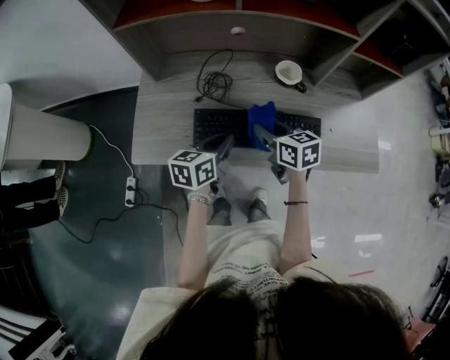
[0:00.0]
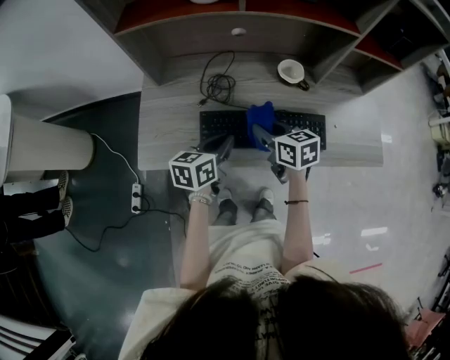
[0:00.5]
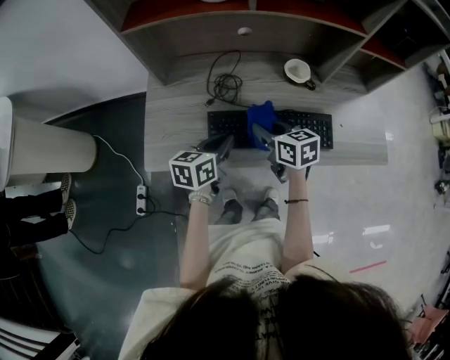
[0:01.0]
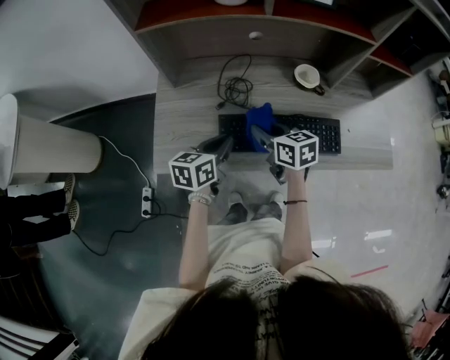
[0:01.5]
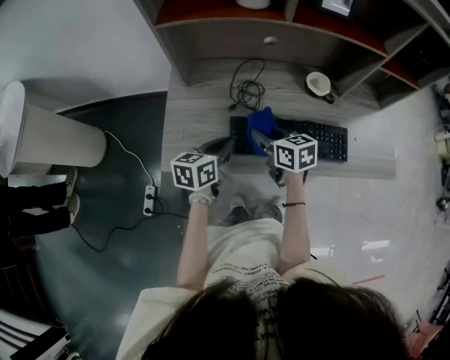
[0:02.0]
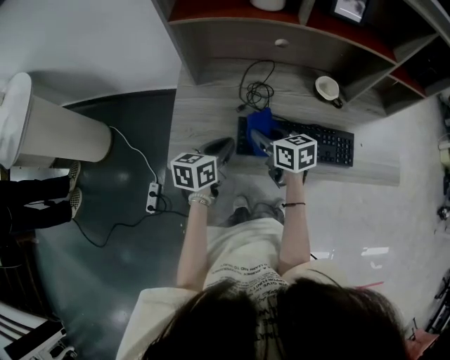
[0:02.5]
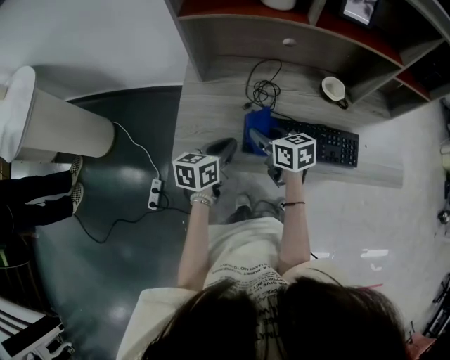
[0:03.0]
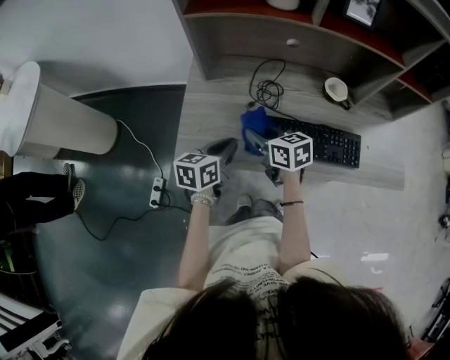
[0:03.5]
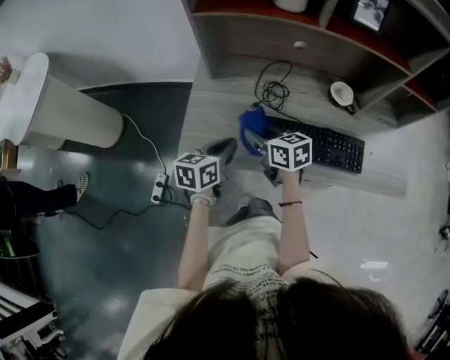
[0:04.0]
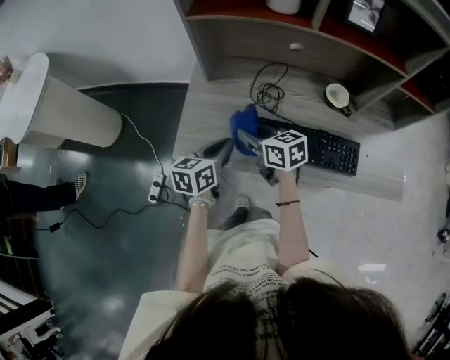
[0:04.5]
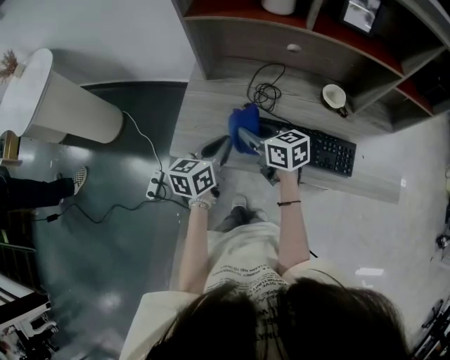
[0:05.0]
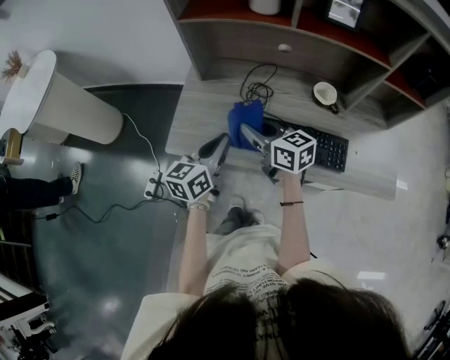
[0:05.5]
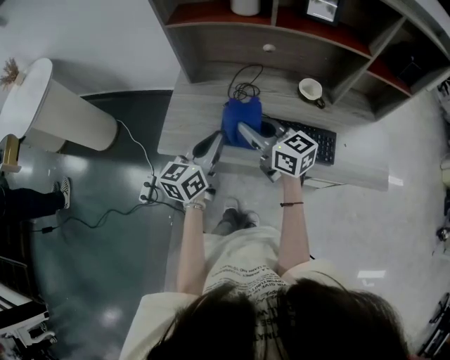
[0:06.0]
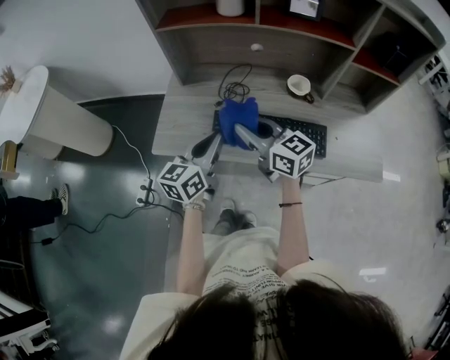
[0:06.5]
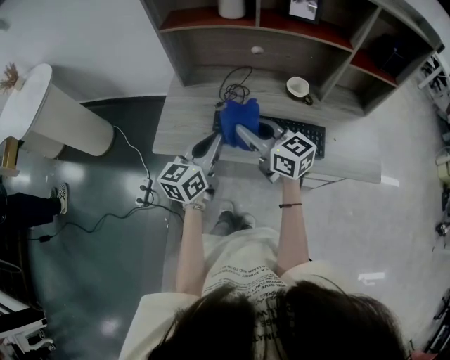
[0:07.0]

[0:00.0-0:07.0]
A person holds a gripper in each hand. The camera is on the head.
0:00.0 to 0:02.0: The grippers both shift to the left by approximately 10 cm.
0:02.0 to 0:03.5: The right gripper goes about 5 cm to the left.
0:03.5 to 0:05.0: The grippers stay close to where they were, moving slightly.
0:05.0 to 0:07.0: The grippers both shift upward, backward and to the right by about 15 cm. The right gripper turns by roughly 20 degrees.

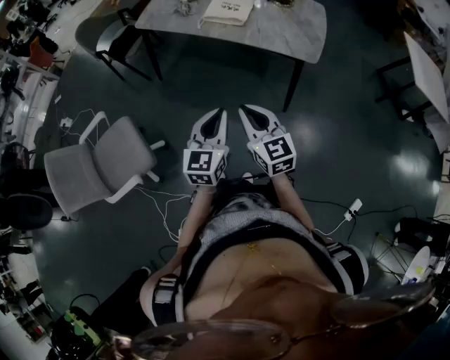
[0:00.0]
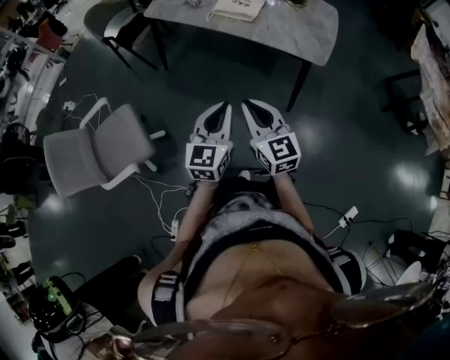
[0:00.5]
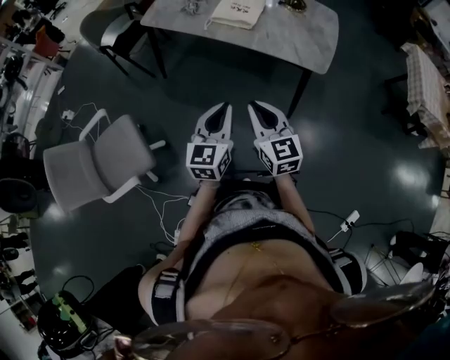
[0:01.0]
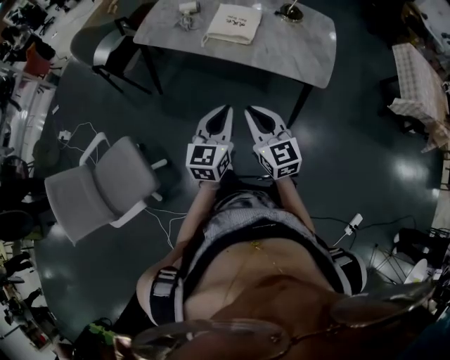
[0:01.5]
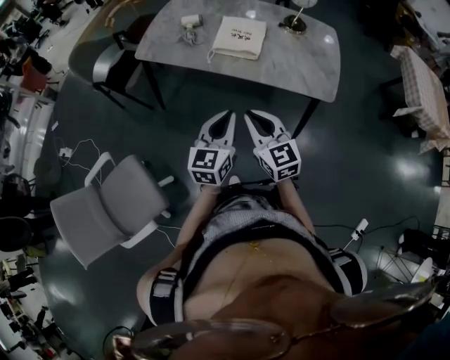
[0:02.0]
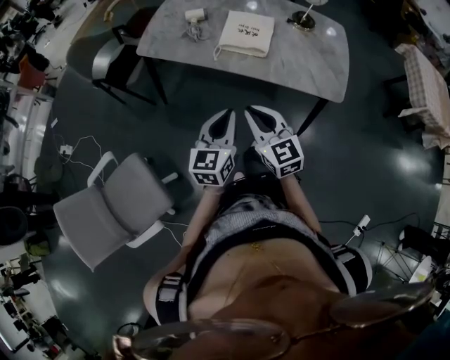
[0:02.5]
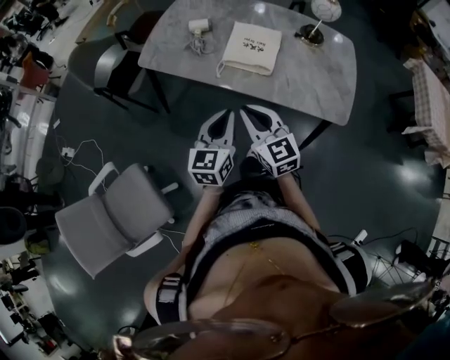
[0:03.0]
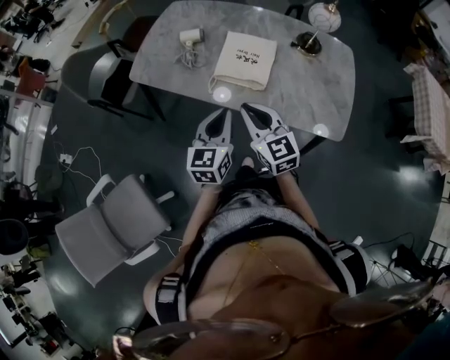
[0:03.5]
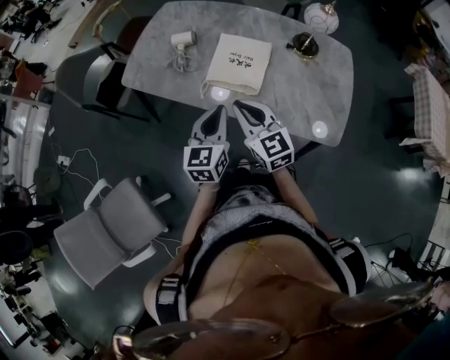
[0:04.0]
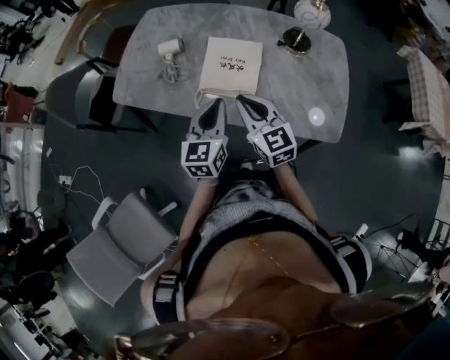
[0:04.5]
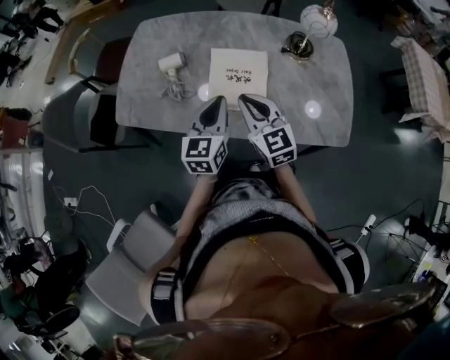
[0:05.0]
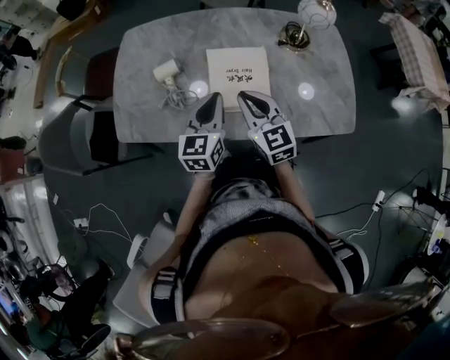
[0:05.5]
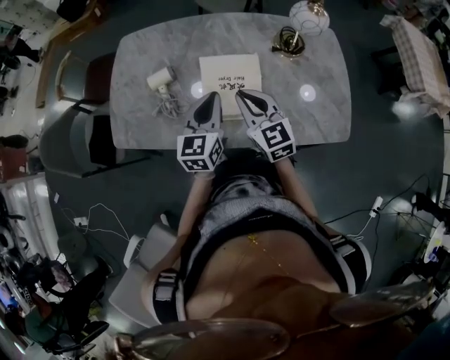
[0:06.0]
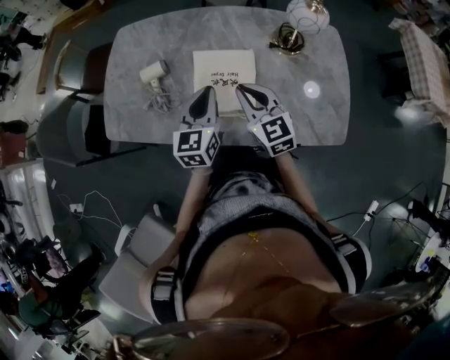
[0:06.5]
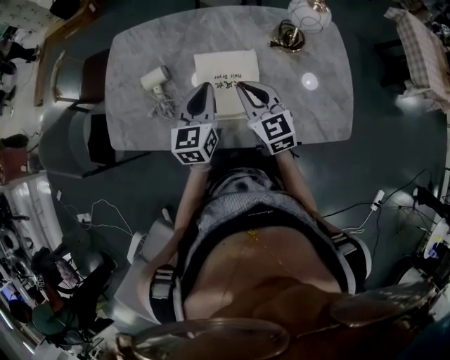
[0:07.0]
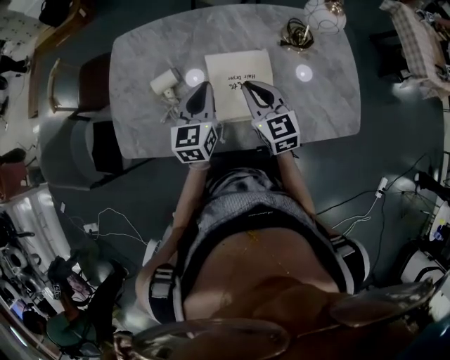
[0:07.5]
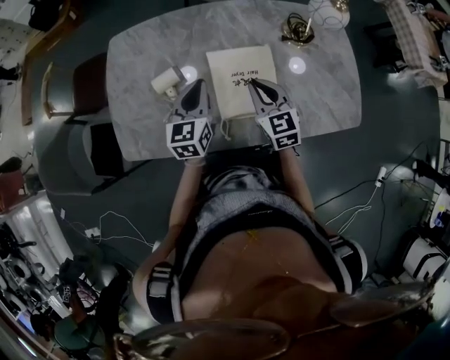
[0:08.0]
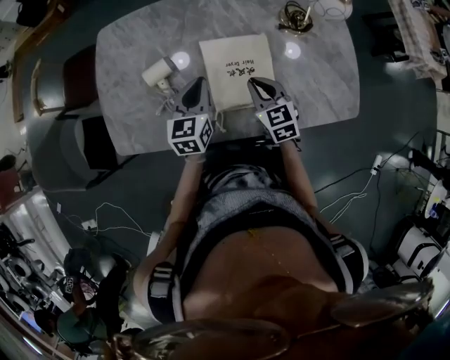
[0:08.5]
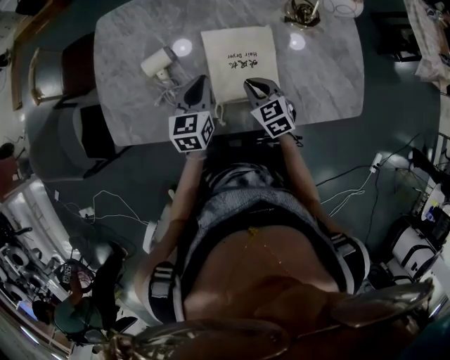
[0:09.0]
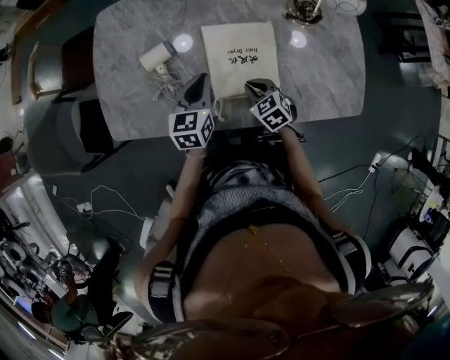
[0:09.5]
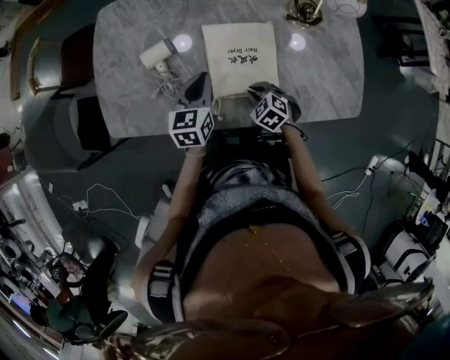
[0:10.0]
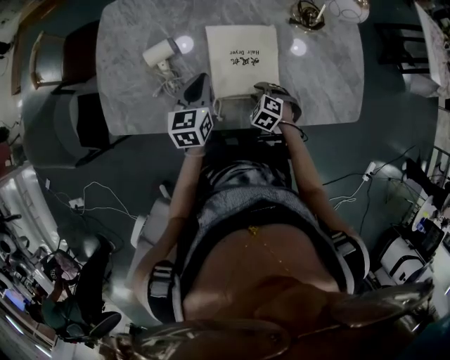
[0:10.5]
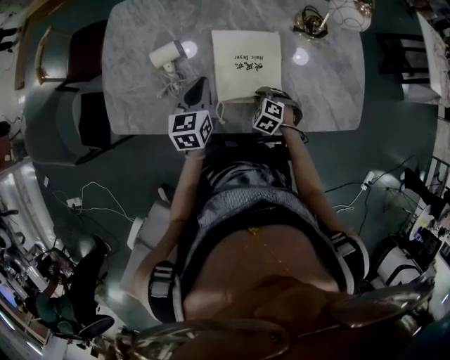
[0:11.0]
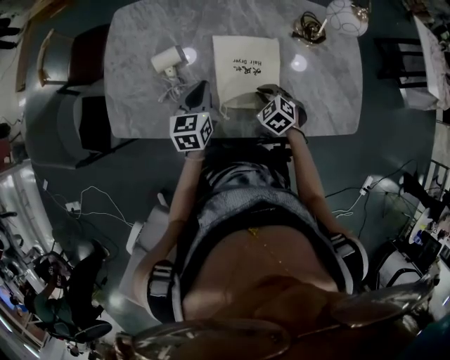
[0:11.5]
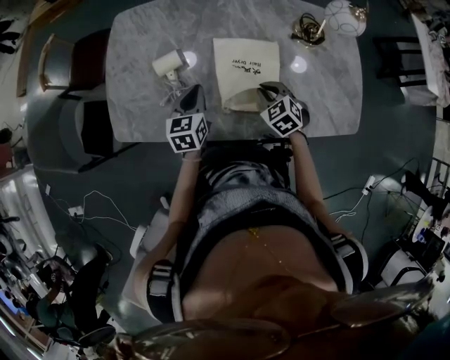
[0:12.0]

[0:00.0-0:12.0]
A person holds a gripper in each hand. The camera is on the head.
0:00.0 to 0:02.0: Both grippers move forward, roughly 20 cm.
0:02.0 to 0:04.0: The two grippers go some 25 cm forward.
0:04.0 to 0:06.0: Both grippers travel together forward, roughly 20 cm. The right gripper turns by some 20 degrees.
0:06.0 to 0:08.0: The left gripper travels to the left and forward by roughly 15 cm. Meanwhile the right gripper travels forward and downward by about 10 cm.
0:08.0 to 0:10.0: The right gripper shifts some 20 cm downward, and points its fingers some 40 degrees further downward; the left gripper heads downward, covering approximately 5 cm.
0:10.0 to 0:12.0: The right gripper shifts about 10 cm upward and forward, and opens and closes again.

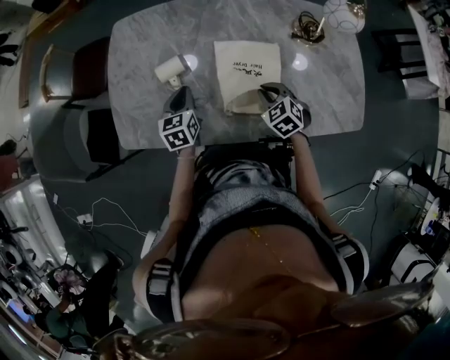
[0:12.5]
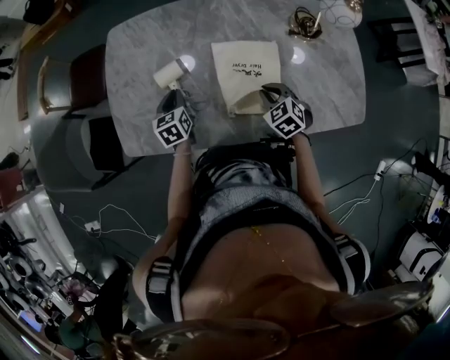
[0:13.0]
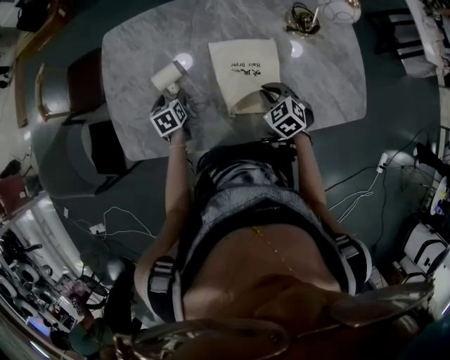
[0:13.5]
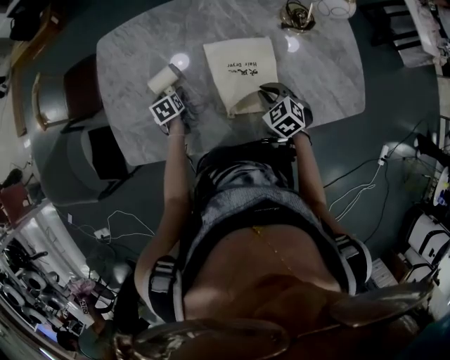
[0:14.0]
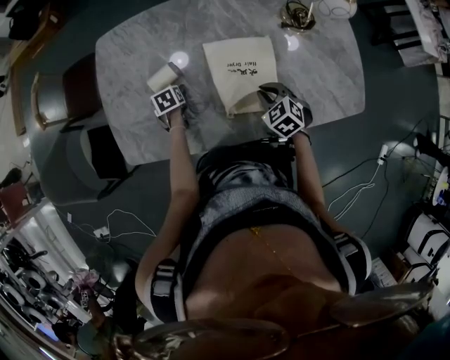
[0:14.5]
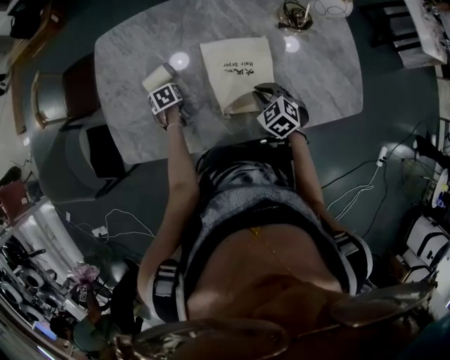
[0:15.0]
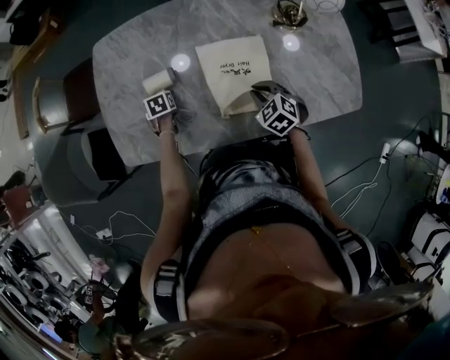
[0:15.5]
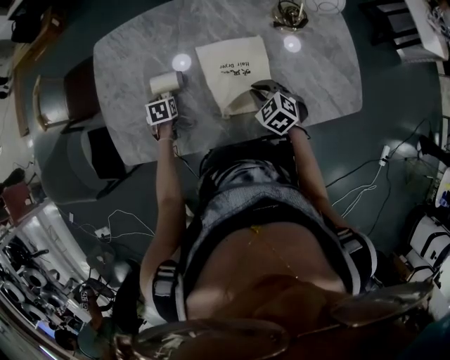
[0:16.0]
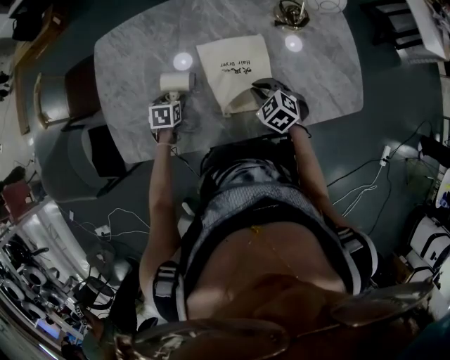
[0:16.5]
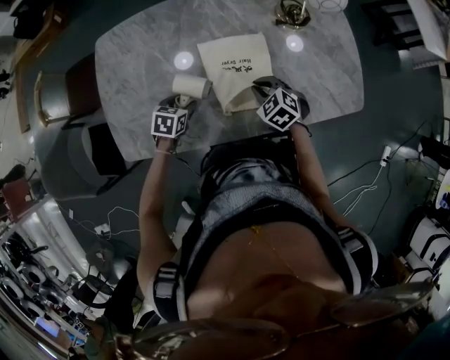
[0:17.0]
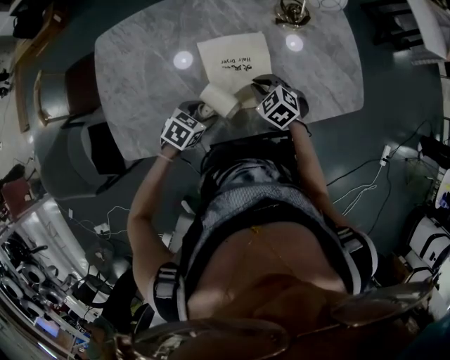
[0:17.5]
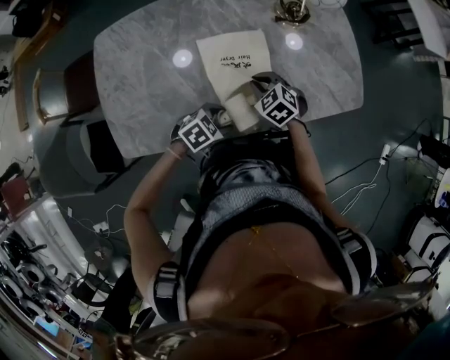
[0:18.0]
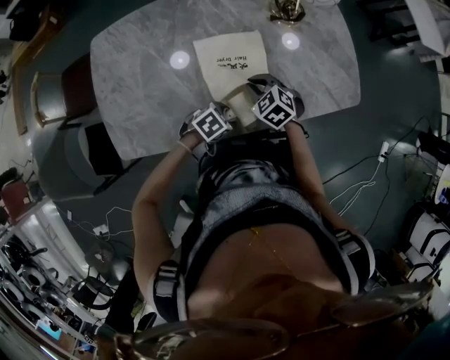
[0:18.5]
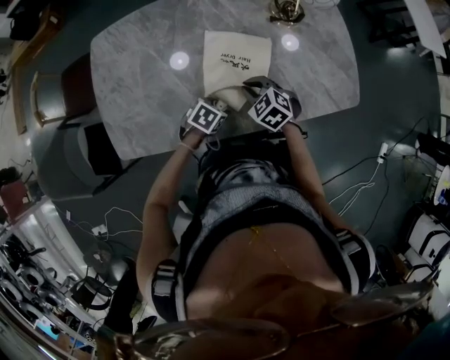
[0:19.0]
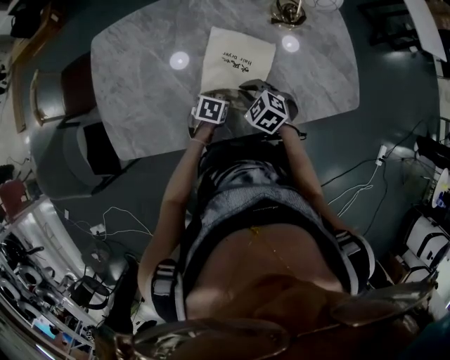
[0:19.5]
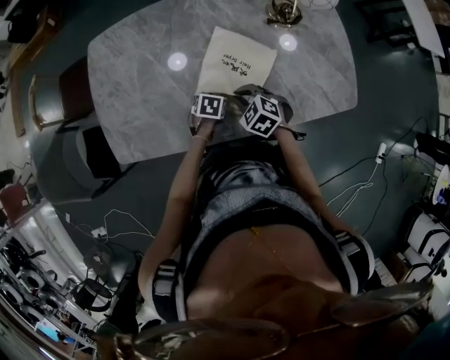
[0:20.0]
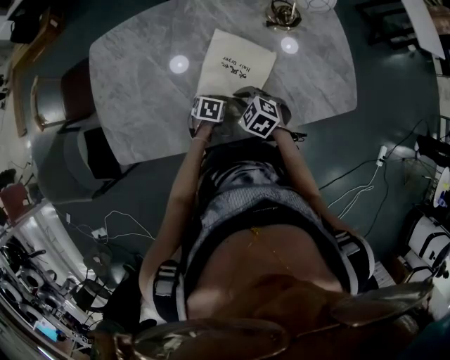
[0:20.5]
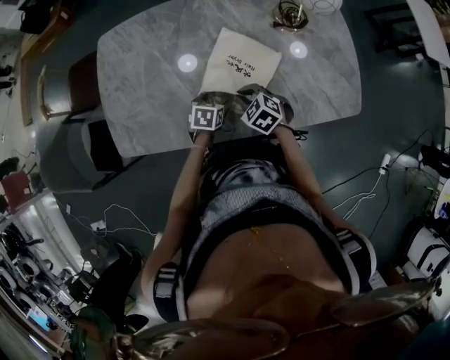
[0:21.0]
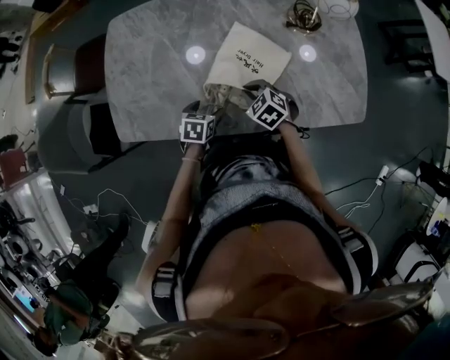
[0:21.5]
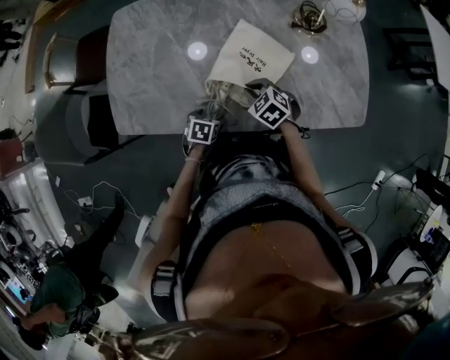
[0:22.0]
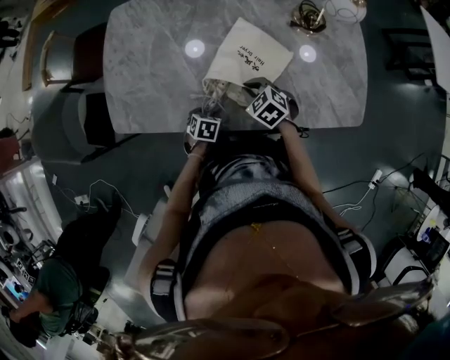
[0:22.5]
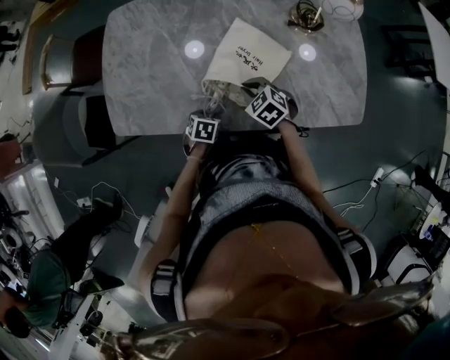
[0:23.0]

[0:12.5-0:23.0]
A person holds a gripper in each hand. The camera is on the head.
0:12.5 to 0:14.5: The left gripper shifts roughly 15 cm downward, tips its fingers downward by about 30 degrees, and opens its fingers.
0:14.5 to 0:16.5: The left gripper shifts by about 5 cm, and changes its angle by roughly 30 degrees.
0:16.5 to 0:19.0: The left gripper moves some 10 cm upward and comes back, and changes its angle by roughly 30 degrees.
0:19.0 to 0:21.0: The left gripper changes its angle by approximately 30 degrees.
0:21.0 to 0:23.0: The left gripper goes approximately 10 cm backward, and closes up.
